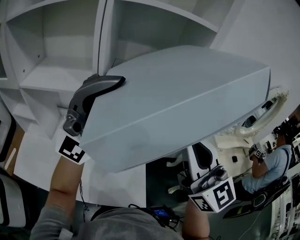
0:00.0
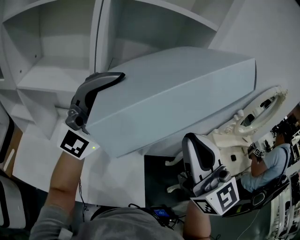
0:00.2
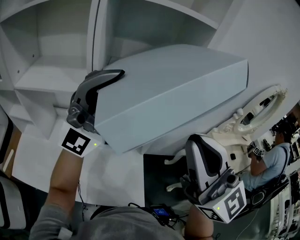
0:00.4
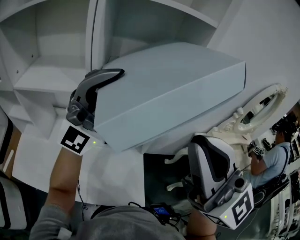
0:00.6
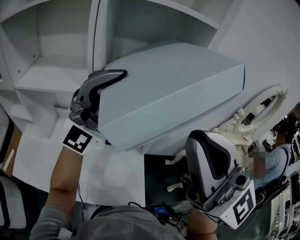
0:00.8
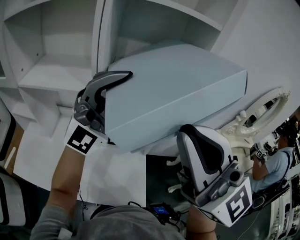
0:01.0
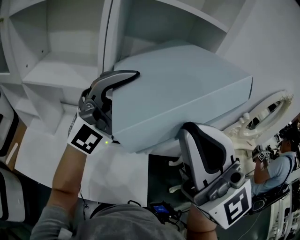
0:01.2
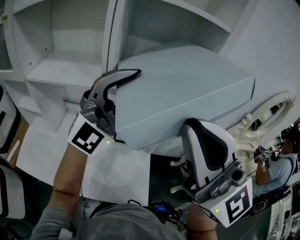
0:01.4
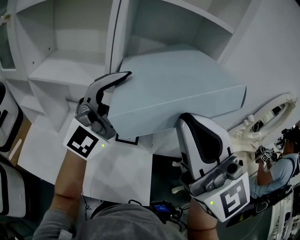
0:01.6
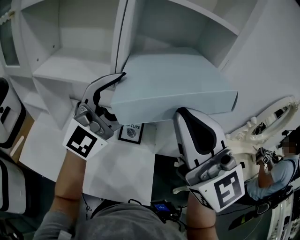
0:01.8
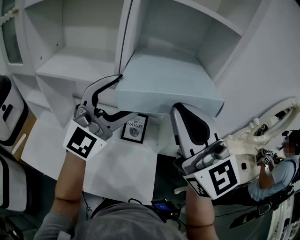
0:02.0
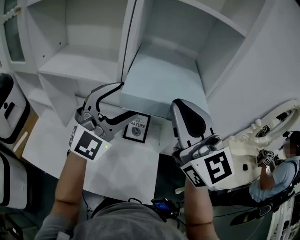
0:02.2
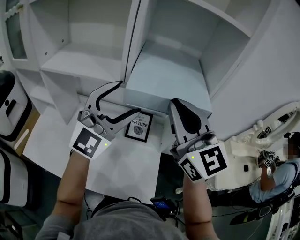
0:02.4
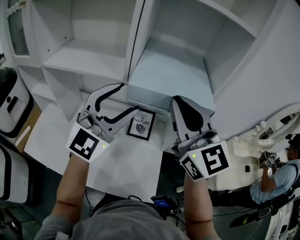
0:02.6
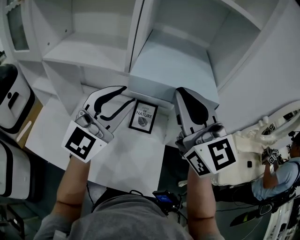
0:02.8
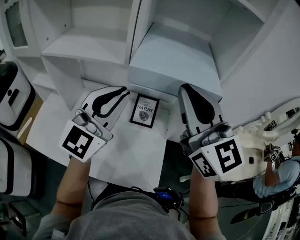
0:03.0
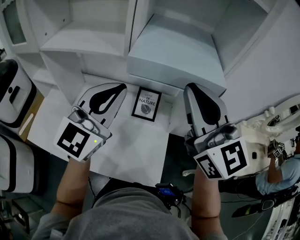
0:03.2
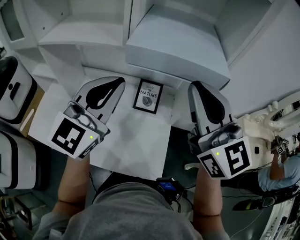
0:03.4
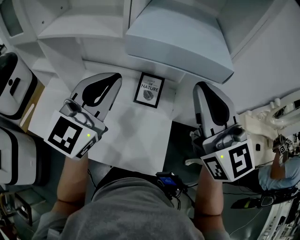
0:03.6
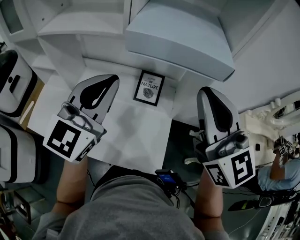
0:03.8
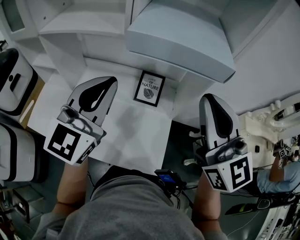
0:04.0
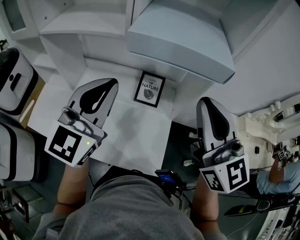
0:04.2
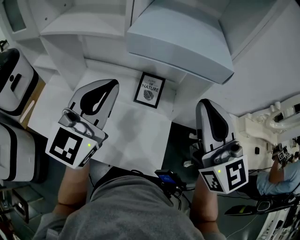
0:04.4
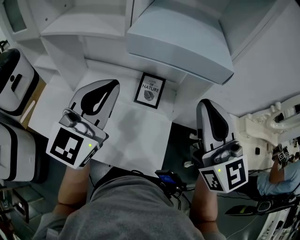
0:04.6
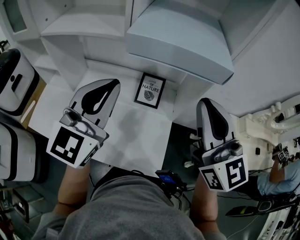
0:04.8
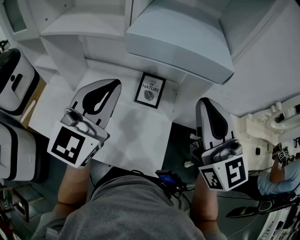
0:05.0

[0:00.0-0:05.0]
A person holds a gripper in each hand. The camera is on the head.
0:00.0 to 0:01.6: The right gripper moves to the left and upward, approximately 10 cm, while the left gripper travels forward and downward by some 10 cm, and rotates approximately 30 degrees.
0:01.6 to 0:03.4: The left gripper travels downward and to the left by approximately 10 cm, swivels approximately 40 degrees, and closes its fingers; the right gripper is displaced downward and forward by about 15 cm.
0:03.4 to 0:05.0: The right gripper shifts by roughly 5 cm.

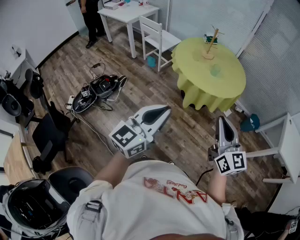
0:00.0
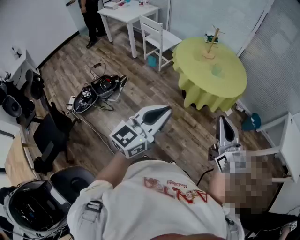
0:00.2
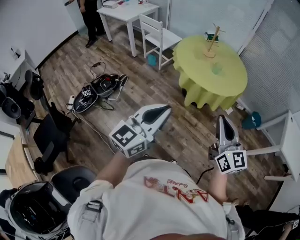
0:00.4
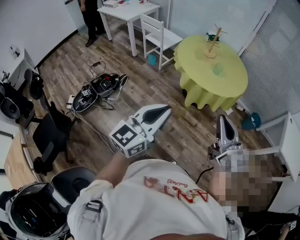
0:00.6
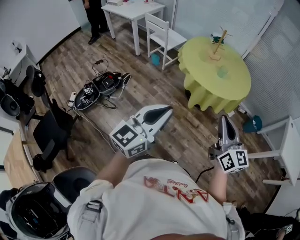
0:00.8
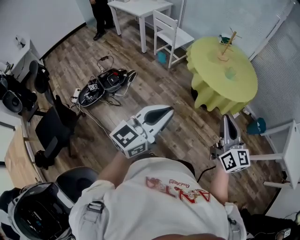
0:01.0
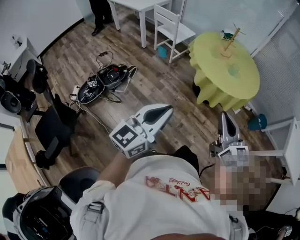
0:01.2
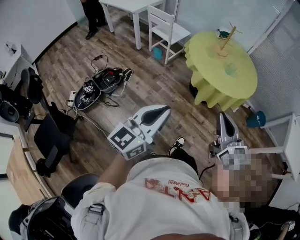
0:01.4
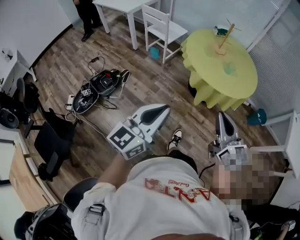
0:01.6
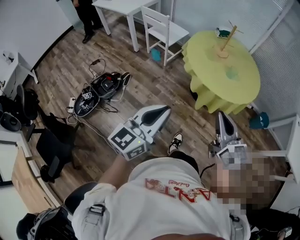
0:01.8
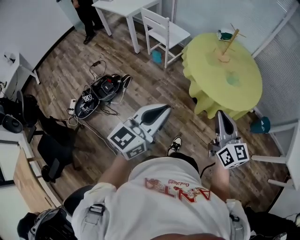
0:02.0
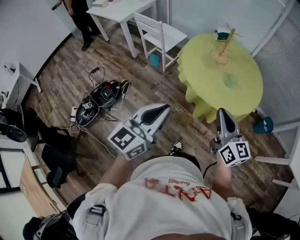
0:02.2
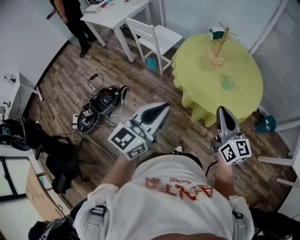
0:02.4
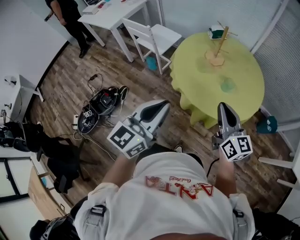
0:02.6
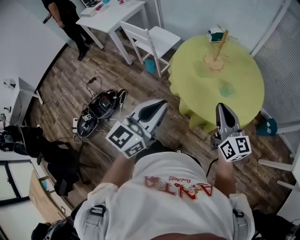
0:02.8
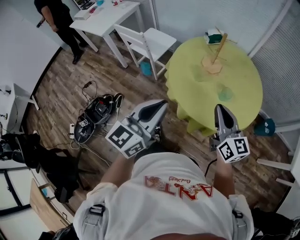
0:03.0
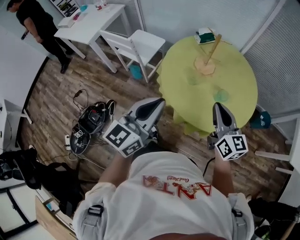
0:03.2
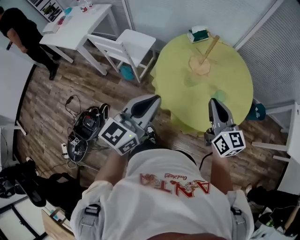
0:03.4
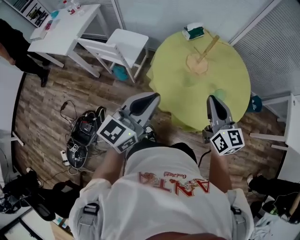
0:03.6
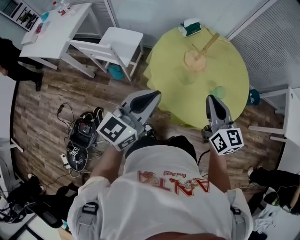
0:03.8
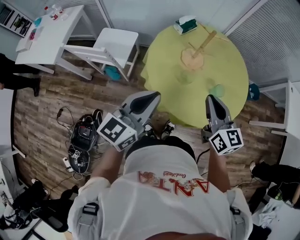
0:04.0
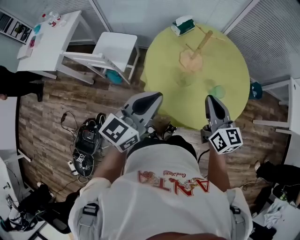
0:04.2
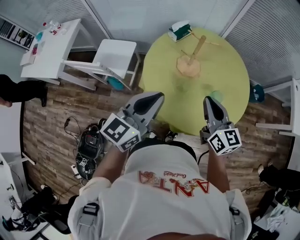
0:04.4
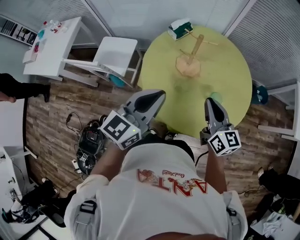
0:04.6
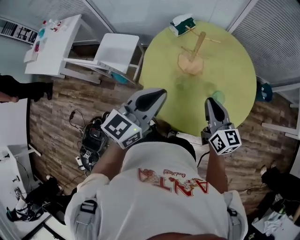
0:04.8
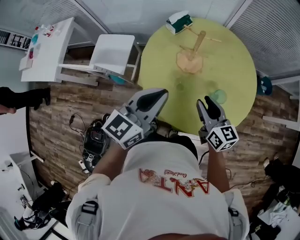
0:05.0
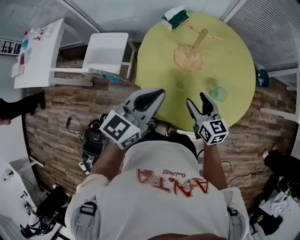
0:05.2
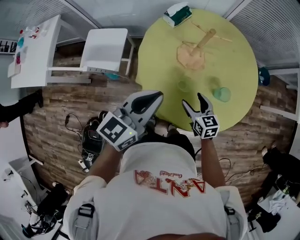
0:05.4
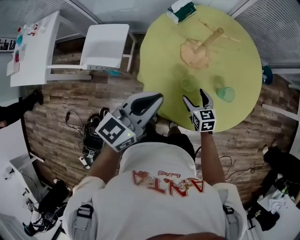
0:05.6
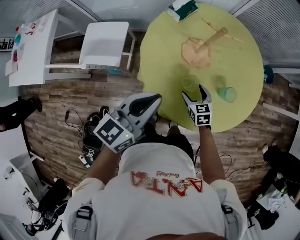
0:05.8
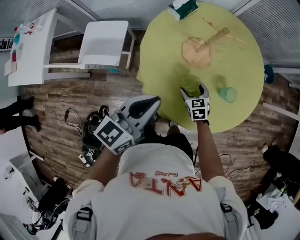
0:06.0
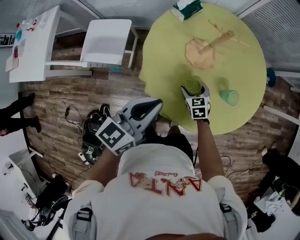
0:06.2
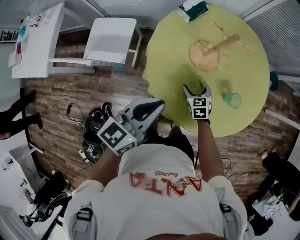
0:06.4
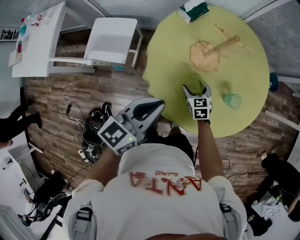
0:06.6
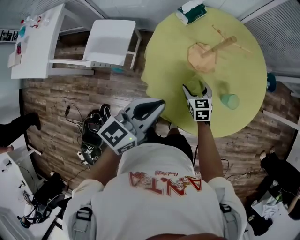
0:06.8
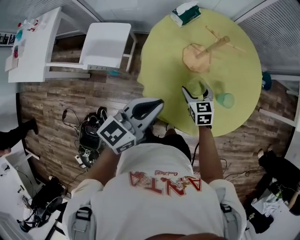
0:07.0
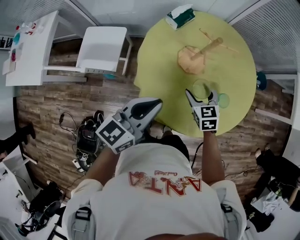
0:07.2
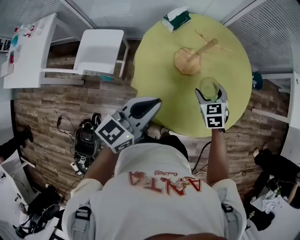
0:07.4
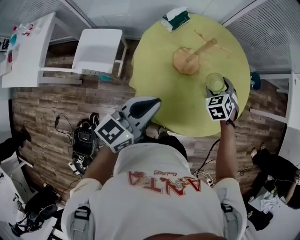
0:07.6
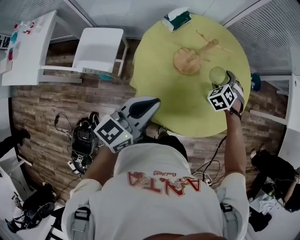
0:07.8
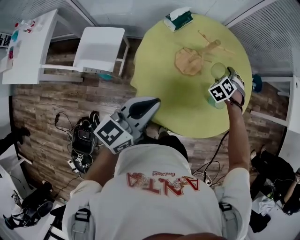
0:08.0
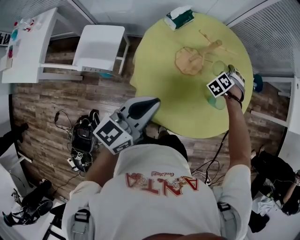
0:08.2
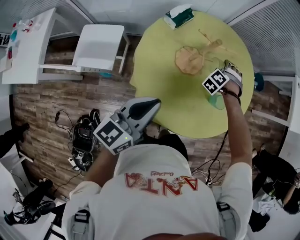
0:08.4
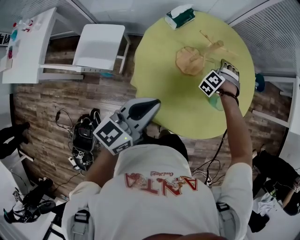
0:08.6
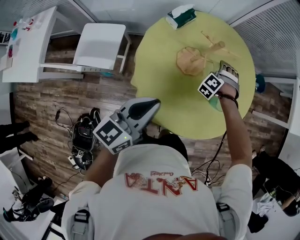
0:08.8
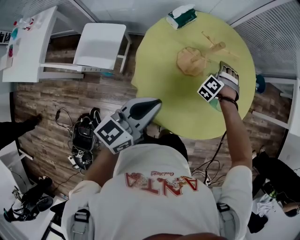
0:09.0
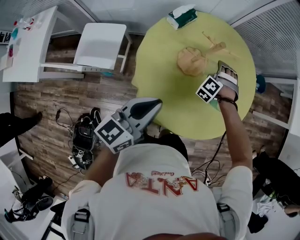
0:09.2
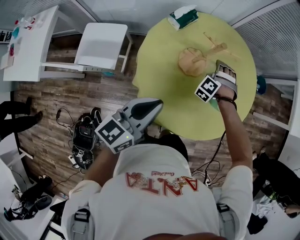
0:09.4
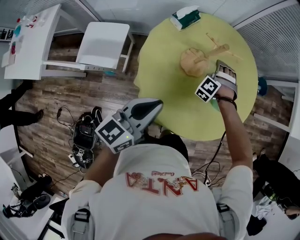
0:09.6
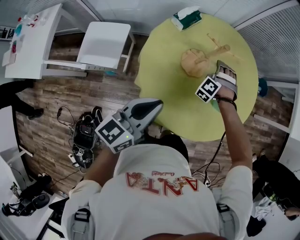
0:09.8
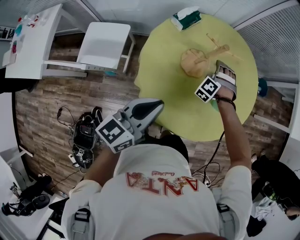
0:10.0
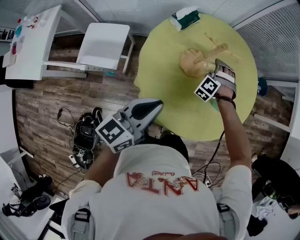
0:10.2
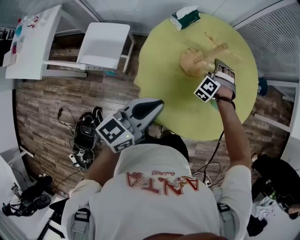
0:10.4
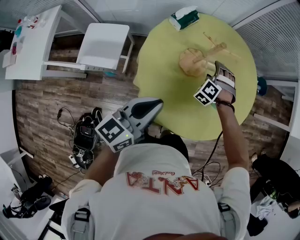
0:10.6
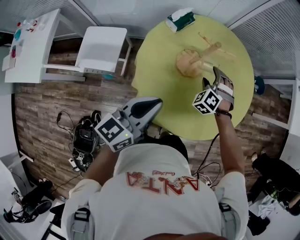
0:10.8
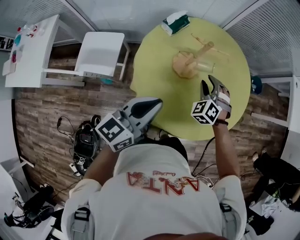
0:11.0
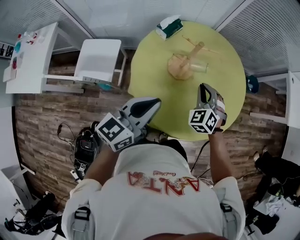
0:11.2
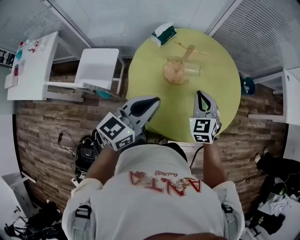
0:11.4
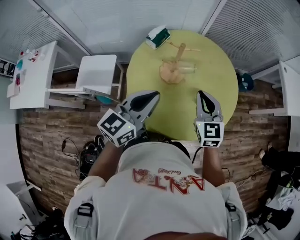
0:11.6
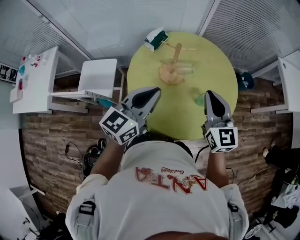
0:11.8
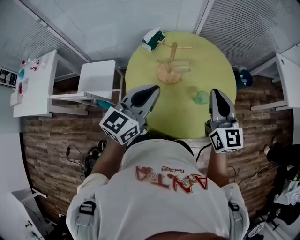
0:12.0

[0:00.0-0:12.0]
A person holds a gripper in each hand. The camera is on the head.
0:00.0 to 0:01.6: The left gripper goes approximately 15 cm to the left and forward; the right gripper moves to the left, forward and downward, some 15 cm.
0:01.6 to 0:03.0: Both grippers move forward, approximately 35 cm.
0:03.0 to 0:04.4: The grippers both shift forward by about 20 cm. The right gripper turns by roughly 20 degrees, while the left gripper changes its angle by some 20 degrees.
0:04.4 to 0:06.0: The left gripper heads downward and forward, covering about 10 cm; the right gripper travels downward by roughly 30 cm, points its fingers approximately 40 degrees further downward, and opens its fingers.
0:06.0 to 0:07.6: The right gripper shifts roughly 20 cm upward, to the right and forward, and turns by roughly 40 degrees.
0:07.6 to 0:09.0: The right gripper is displaced downward and forward by about 10 cm, and turns by about 40 degrees.
0:09.0 to 0:10.4: The grippers move only a little.
0:10.4 to 0:12.0: The left gripper moves upward and to the right, some 10 cm. The right gripper travels upward and backward by roughly 35 cm, rolls clockwise, seen from behind, by some 80 degrees, and closes.

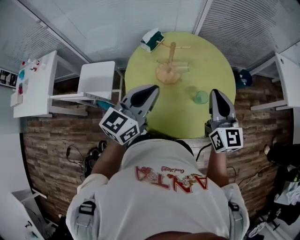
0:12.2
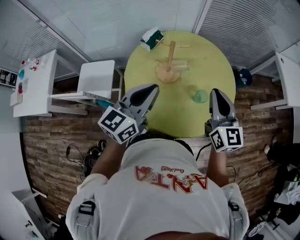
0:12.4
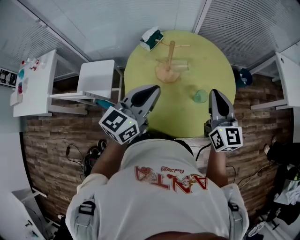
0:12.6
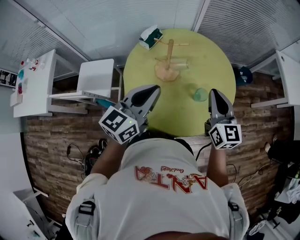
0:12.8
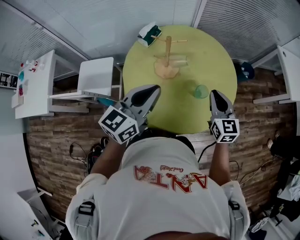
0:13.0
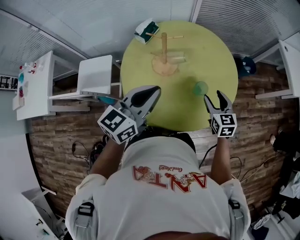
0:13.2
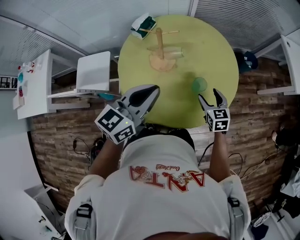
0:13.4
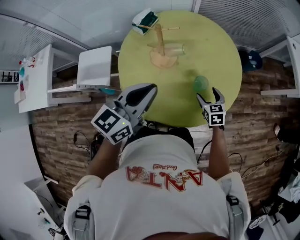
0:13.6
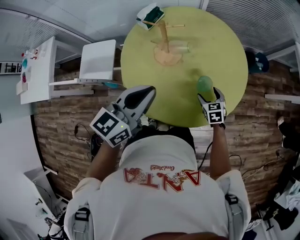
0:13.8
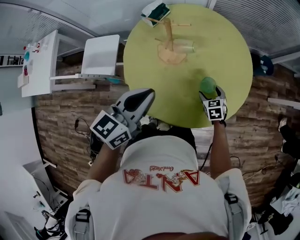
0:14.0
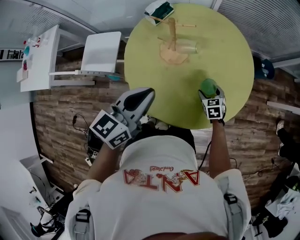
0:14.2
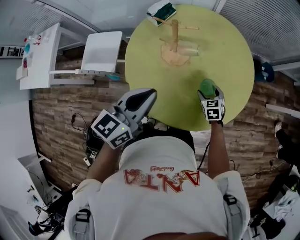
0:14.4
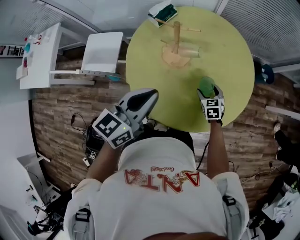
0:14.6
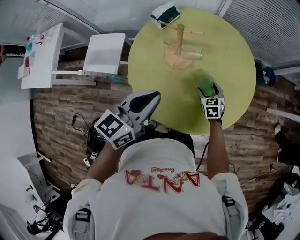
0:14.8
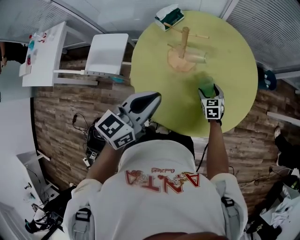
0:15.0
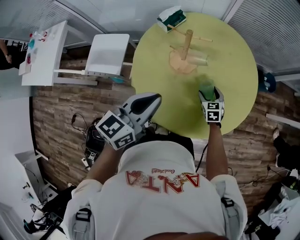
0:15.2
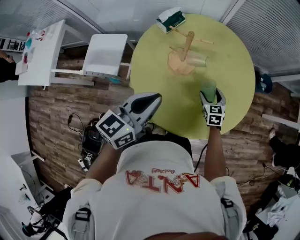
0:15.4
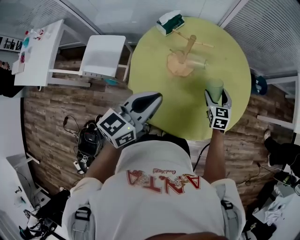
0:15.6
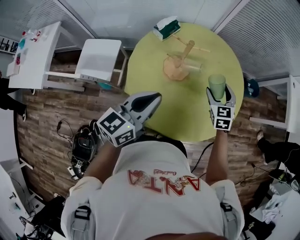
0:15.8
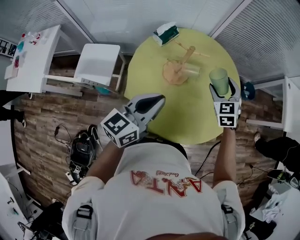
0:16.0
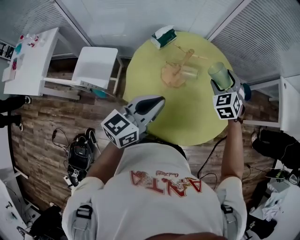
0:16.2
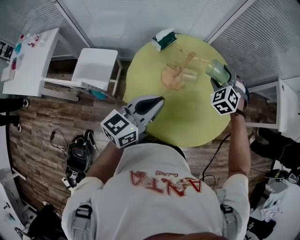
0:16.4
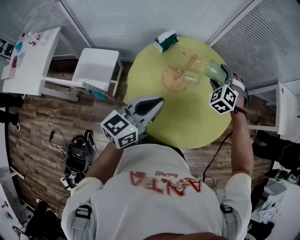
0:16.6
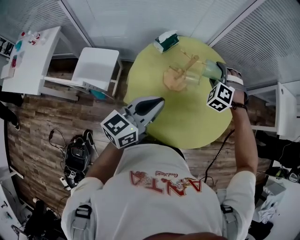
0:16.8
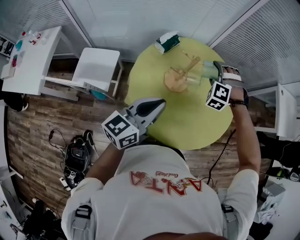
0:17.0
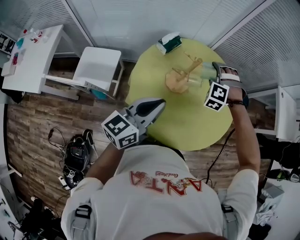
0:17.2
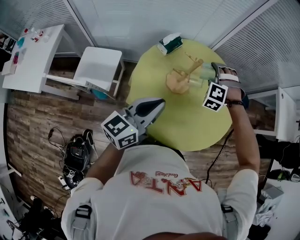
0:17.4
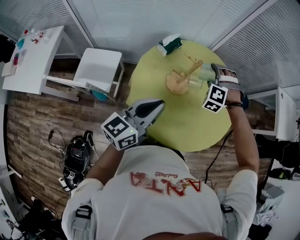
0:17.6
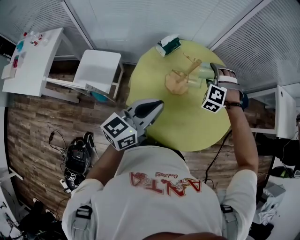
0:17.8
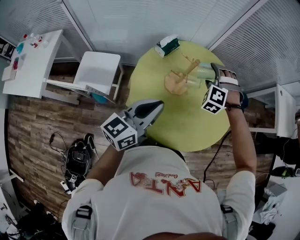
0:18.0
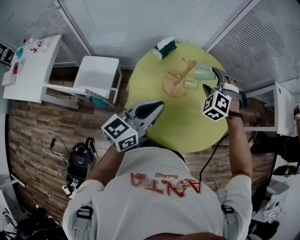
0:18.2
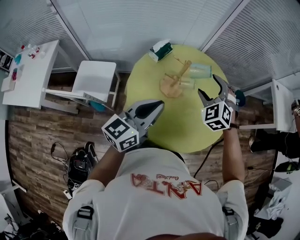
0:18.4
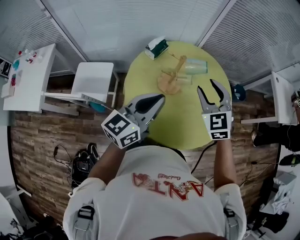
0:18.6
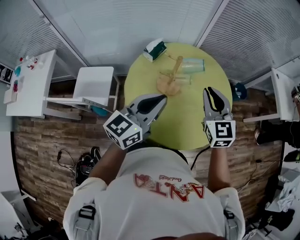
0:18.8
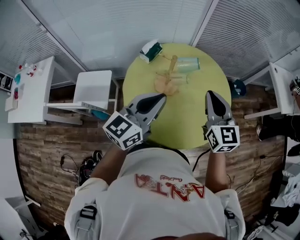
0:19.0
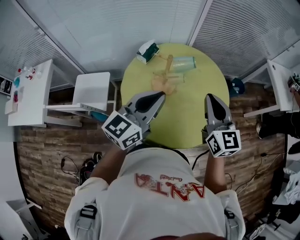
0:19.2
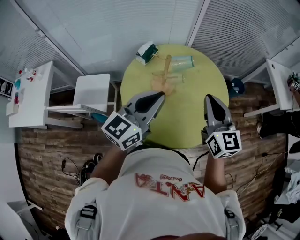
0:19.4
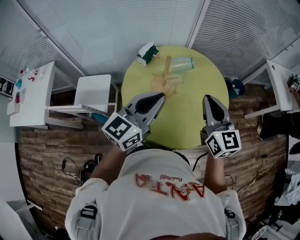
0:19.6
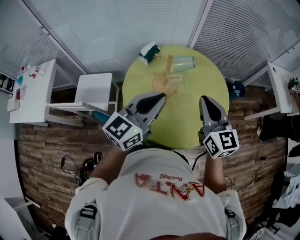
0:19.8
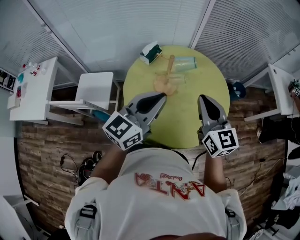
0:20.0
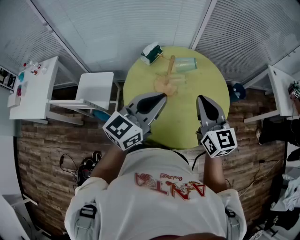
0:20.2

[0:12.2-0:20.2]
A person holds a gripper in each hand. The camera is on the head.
0:12.2 to 0:13.8: The right gripper heads downward, covering approximately 35 cm, tips its fingers downward by some 50 degrees, and opens. The left gripper is displaced to the right and downward by approximately 10 cm.
0:13.8 to 0:15.4: The left gripper shifts by roughly 5 cm. The right gripper goes about 10 cm forward and to the left.
0:15.4 to 0:17.0: The left gripper changes place by approximately 5 cm; the right gripper shifts about 25 cm upward, to the left and forward, and twists roughly 80 degrees counterclockwise, seen from behind.
0:17.0 to 0:18.6: The right gripper is displaced backward and upward by some 15 cm, twists some 60 degrees clockwise, seen from behind, and closes up.
0:18.6 to 0:20.2: The left gripper ends up approximately 5 cm from where it was, while the right gripper shifts some 10 cm backward, swivels some 40 degrees, and closes its fingers.
